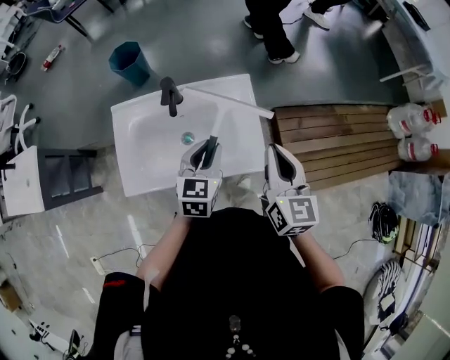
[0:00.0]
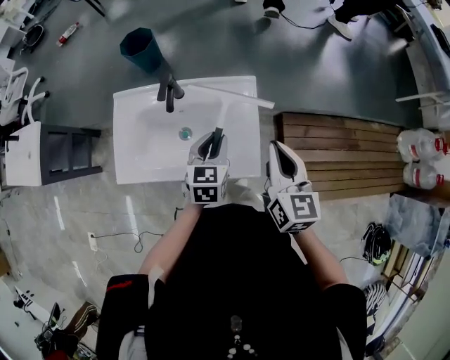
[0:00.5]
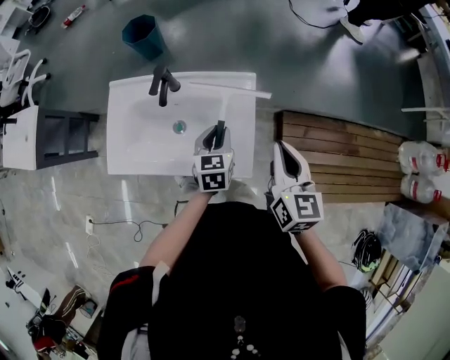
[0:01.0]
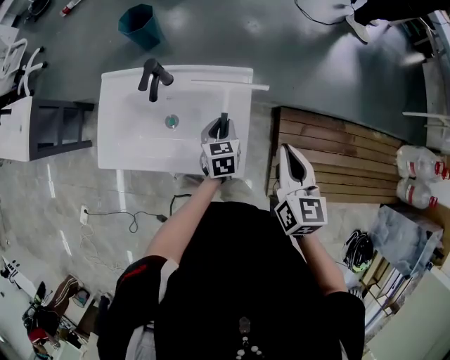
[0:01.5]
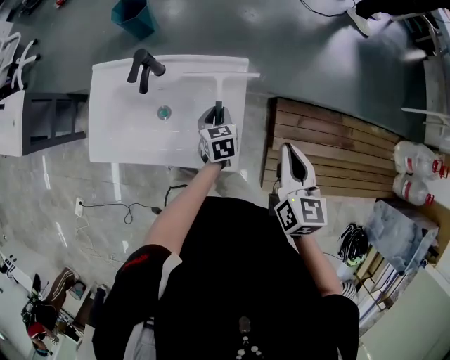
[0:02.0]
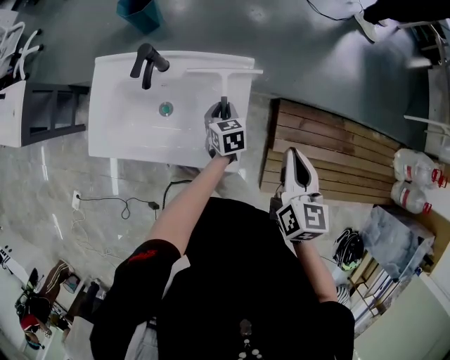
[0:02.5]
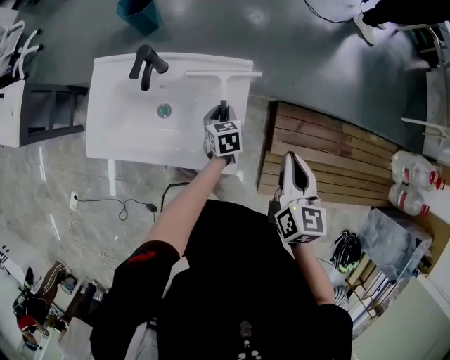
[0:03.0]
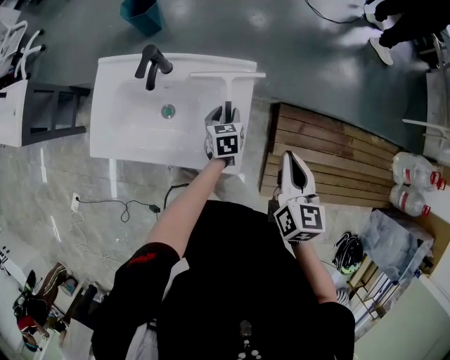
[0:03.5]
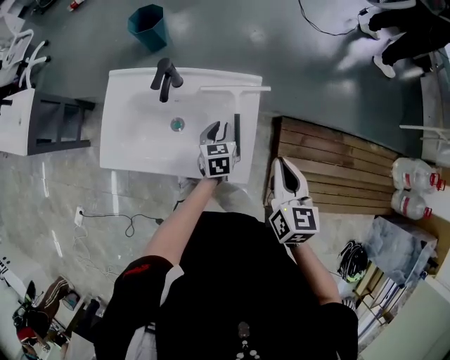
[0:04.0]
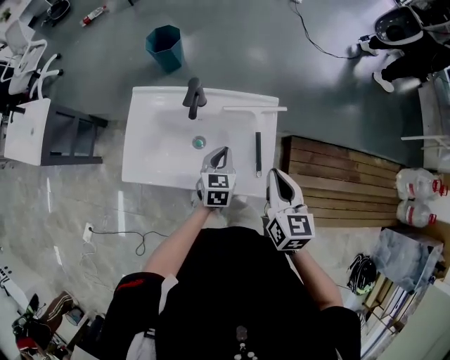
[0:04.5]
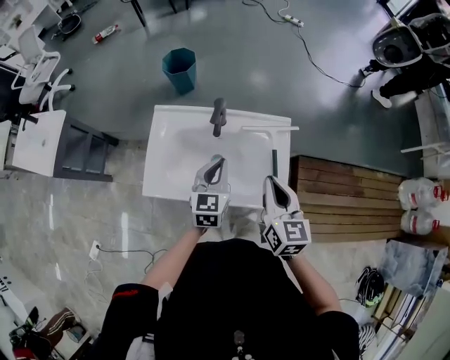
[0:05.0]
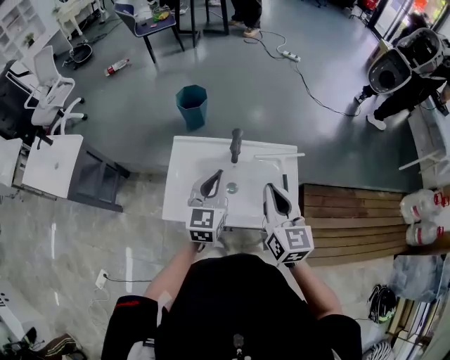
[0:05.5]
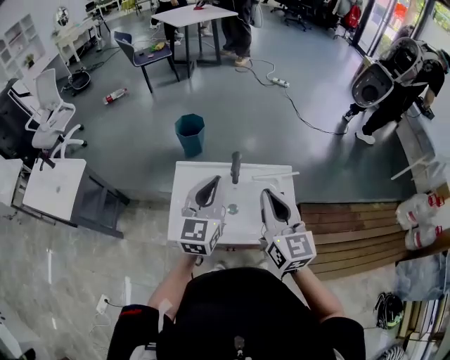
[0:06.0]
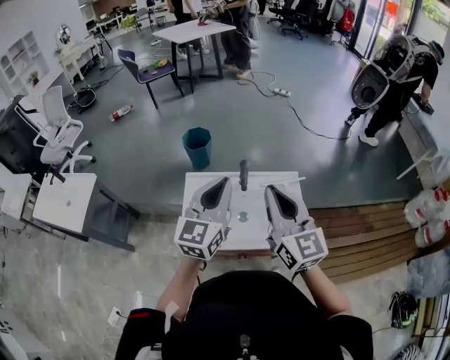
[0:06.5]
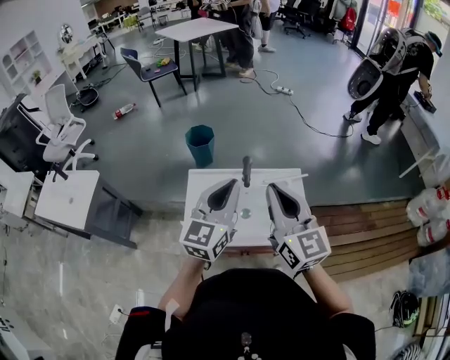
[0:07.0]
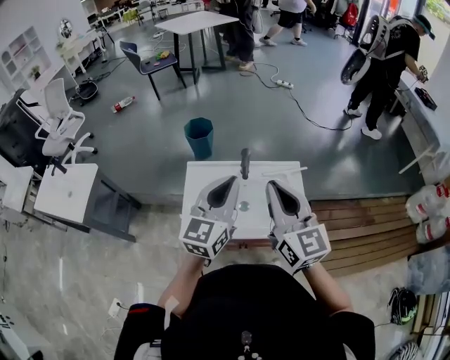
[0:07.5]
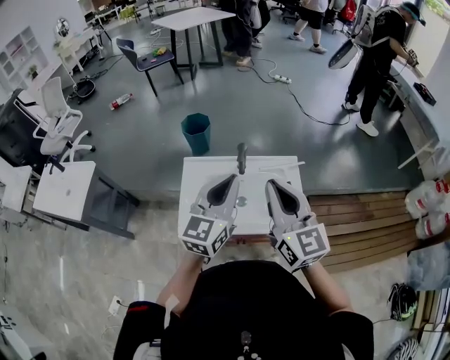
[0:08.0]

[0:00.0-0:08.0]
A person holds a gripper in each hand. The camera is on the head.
0:00.0 to 0:02.0: The left gripper goes about 25 cm downward, to the right and forward, and changes its angle by about 40 degrees. Meanwhile the right gripper travels to the right, downward and forward by some 15 cm.
0:02.0 to 0:04.0: The right gripper moves to the left, some 5 cm.
0:04.0 to 0:06.0: The right gripper heads to the left and upward, covering roughly 35 cm, and changes its angle by roughly 30 degrees. Meanwhile the left gripper travels upward and to the left by approximately 40 cm, tips its fingers upward by about 40 degrees, and closes its fingers.
0:06.0 to 0:08.0: Both grippers travel together backward, about 5 cm.

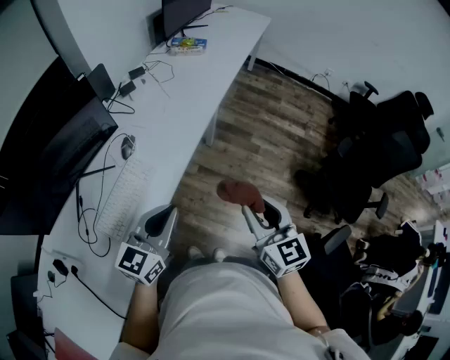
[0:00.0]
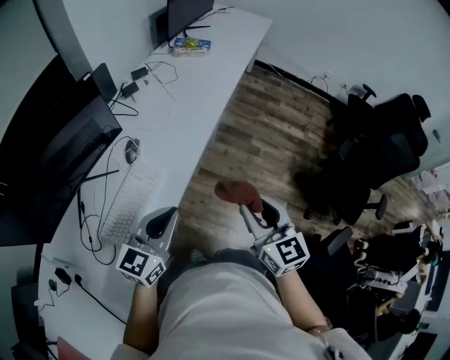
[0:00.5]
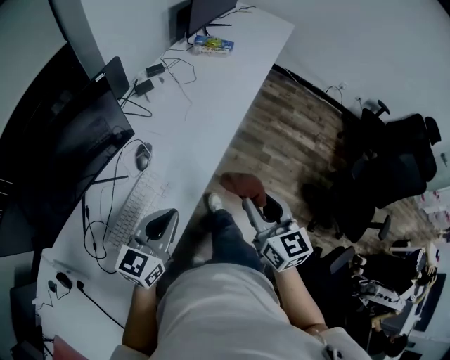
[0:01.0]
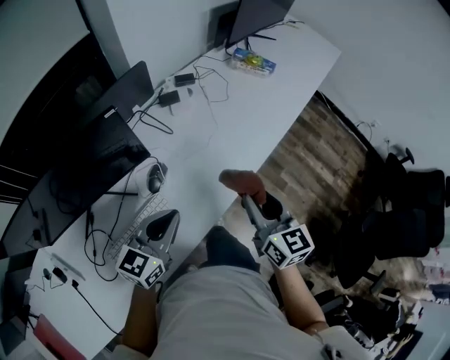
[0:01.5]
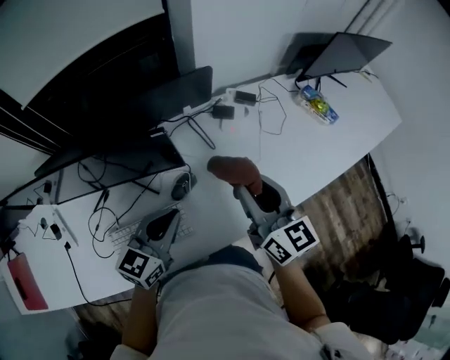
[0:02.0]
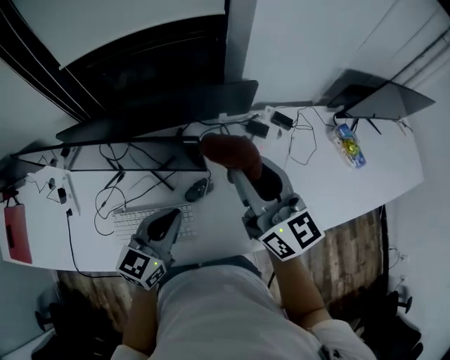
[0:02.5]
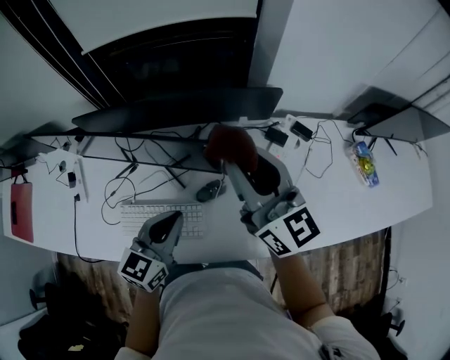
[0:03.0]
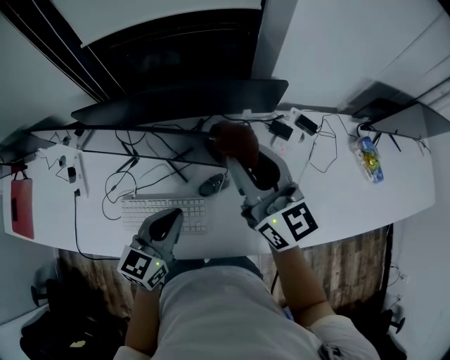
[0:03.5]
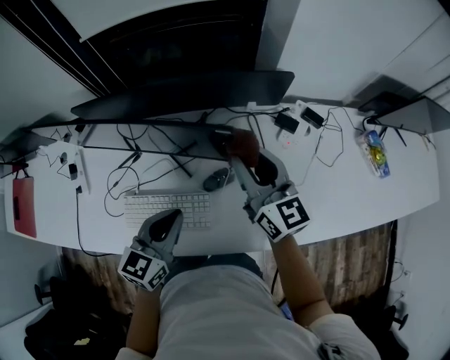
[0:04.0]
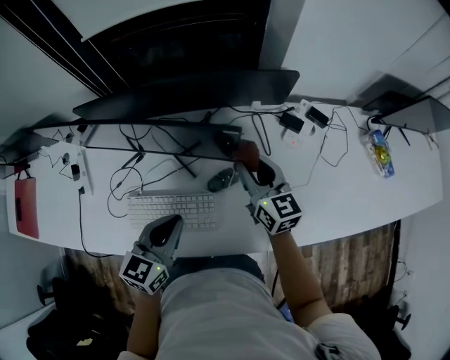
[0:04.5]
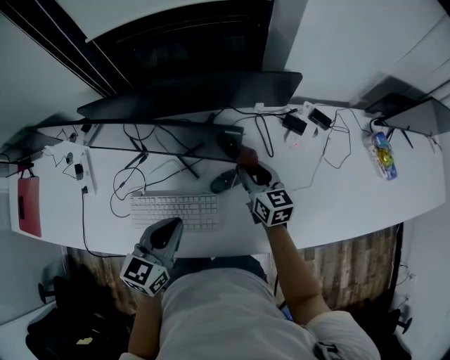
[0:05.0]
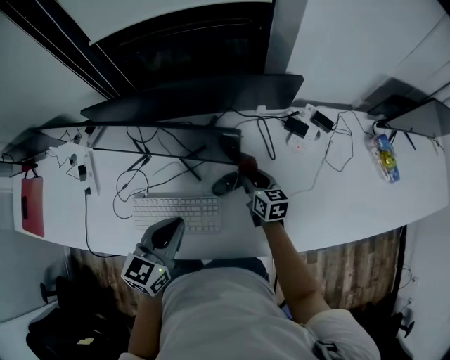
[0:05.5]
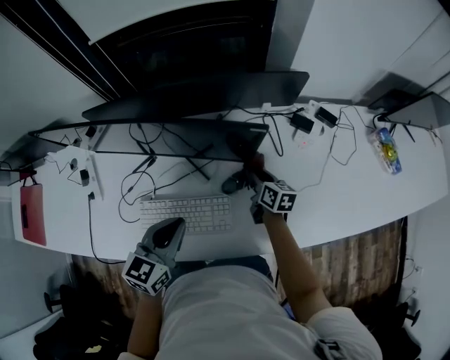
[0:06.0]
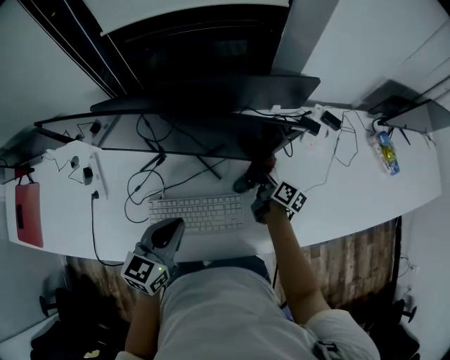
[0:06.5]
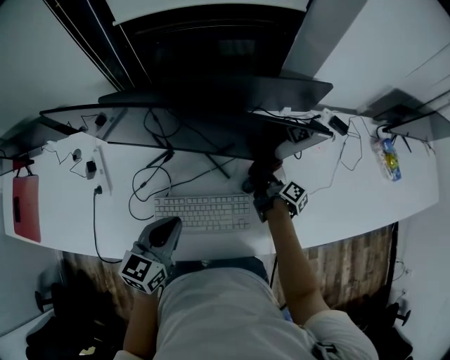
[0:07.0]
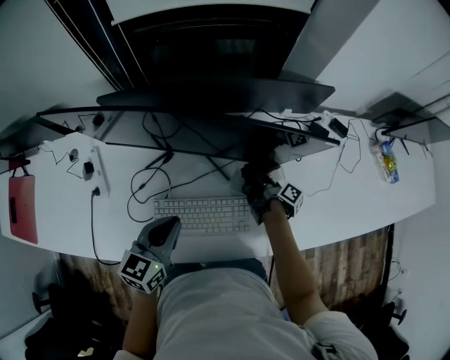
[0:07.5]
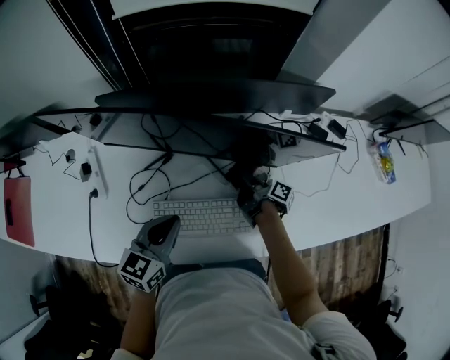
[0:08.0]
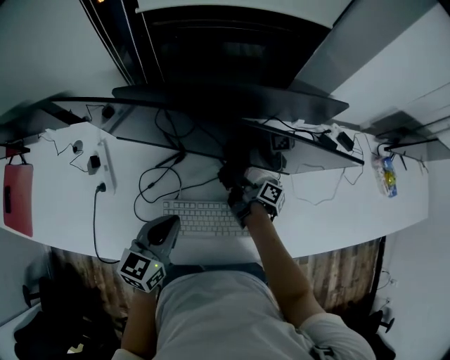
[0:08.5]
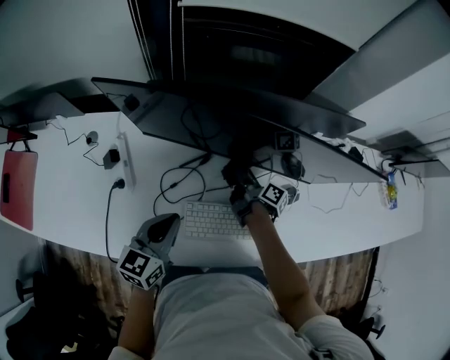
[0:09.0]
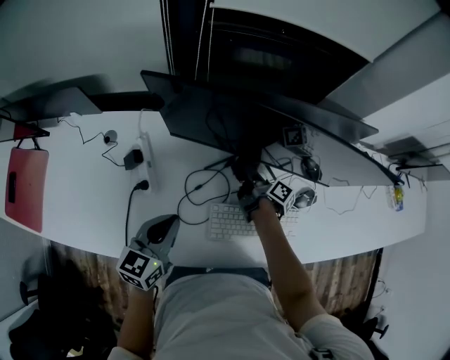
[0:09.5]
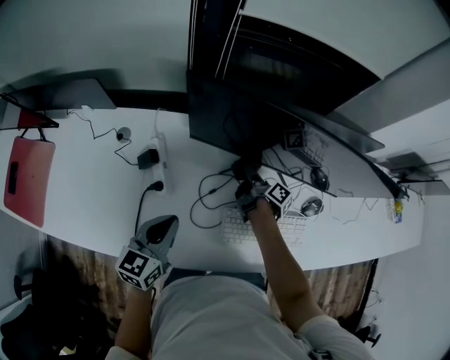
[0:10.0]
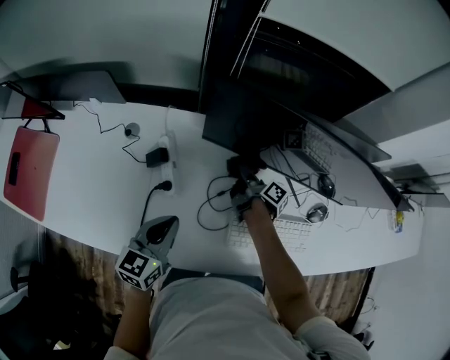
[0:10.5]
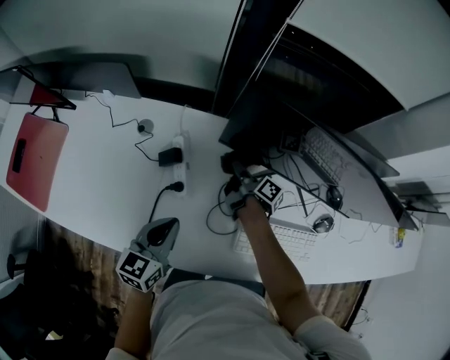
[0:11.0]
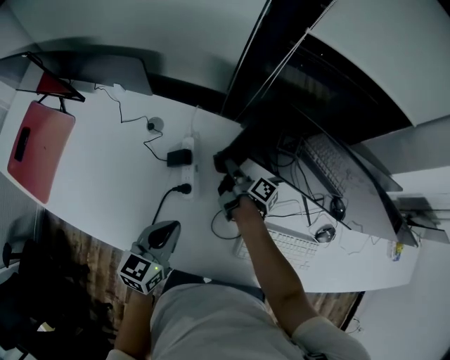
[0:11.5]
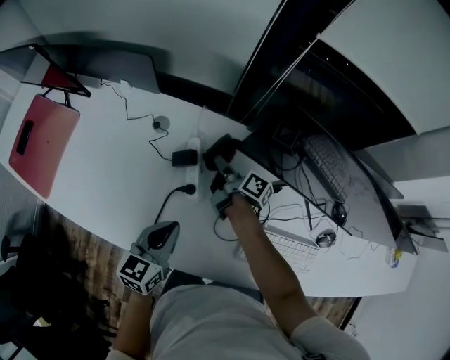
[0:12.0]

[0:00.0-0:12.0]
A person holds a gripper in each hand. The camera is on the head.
0:00.0 to 0:02.0: The left gripper changes place by some 35 cm, and swivels some 40 degrees; the right gripper shifts by approximately 50 cm, and rotates approximately 40 degrees.
0:02.0 to 0:04.0: The left gripper shifts approximately 5 cm to the left, and turns by approximately 20 degrees. Meanwhile the right gripper shifts about 15 cm forward and to the left, and turns by roughly 20 degrees.
0:04.0 to 0:06.0: The right gripper heads downward, covering some 25 cm, and turns by some 40 degrees; the left gripper travels to the left by roughly 5 cm.
0:06.0 to 0:08.0: Both grippers move to the left, approximately 10 cm. The right gripper twists approximately 50 degrees clockwise, seen from behind.
0:08.0 to 0:10.0: The grippers both shift to the left by some 30 cm.
0:10.0 to 0:12.0: The right gripper travels to the left by approximately 25 cm, and changes its angle by roughly 30 degrees; the left gripper travels to the left by some 10 cm.

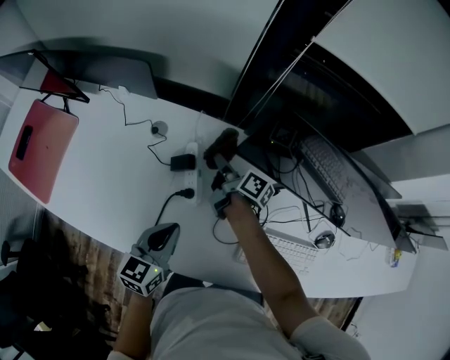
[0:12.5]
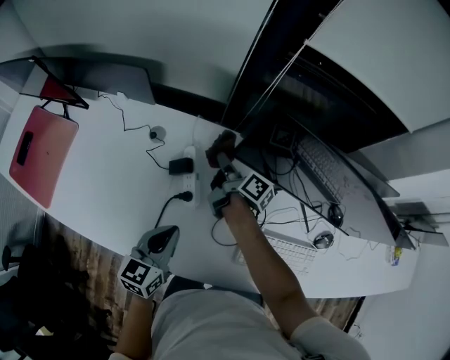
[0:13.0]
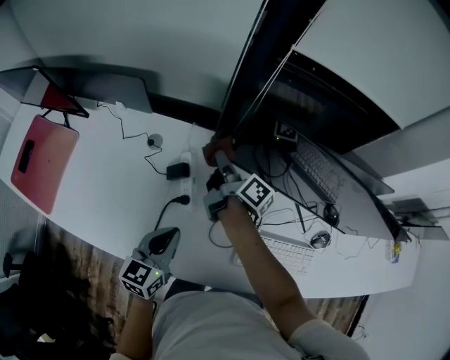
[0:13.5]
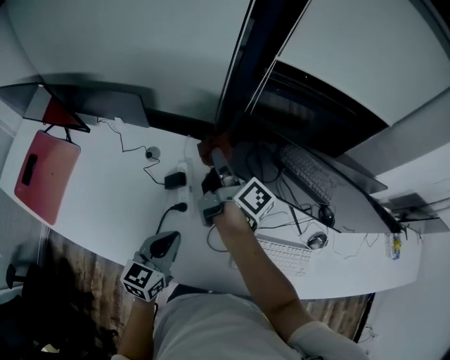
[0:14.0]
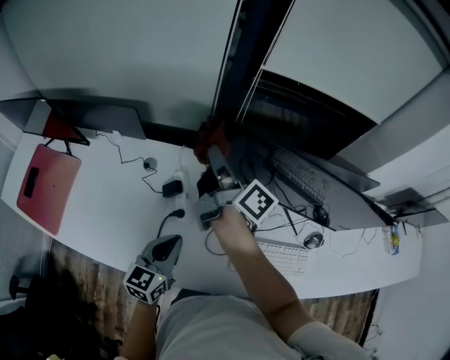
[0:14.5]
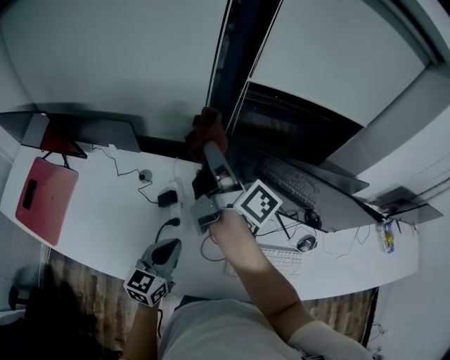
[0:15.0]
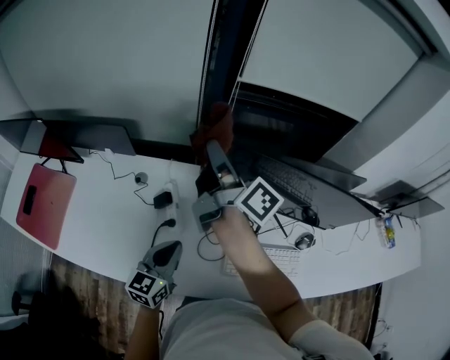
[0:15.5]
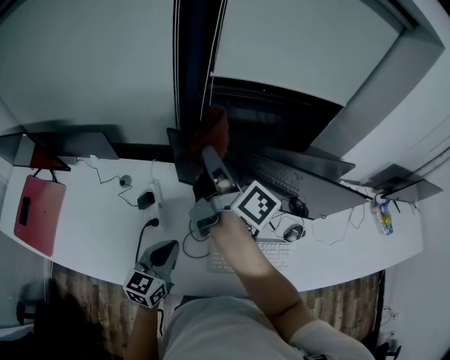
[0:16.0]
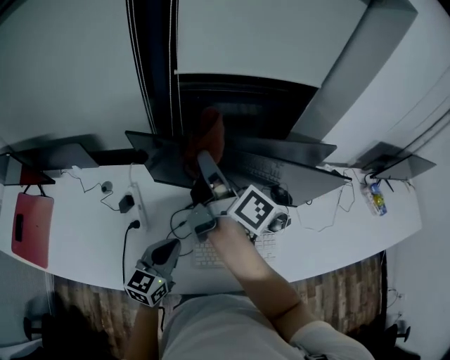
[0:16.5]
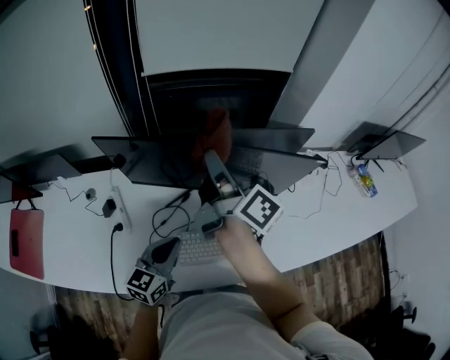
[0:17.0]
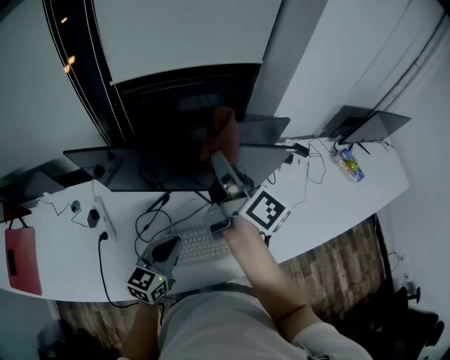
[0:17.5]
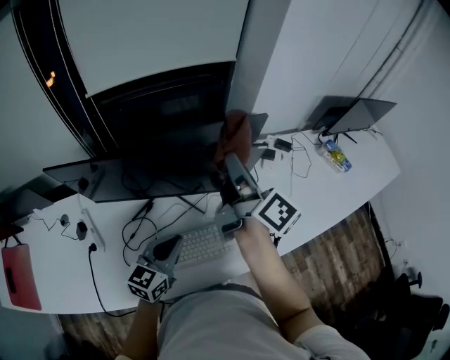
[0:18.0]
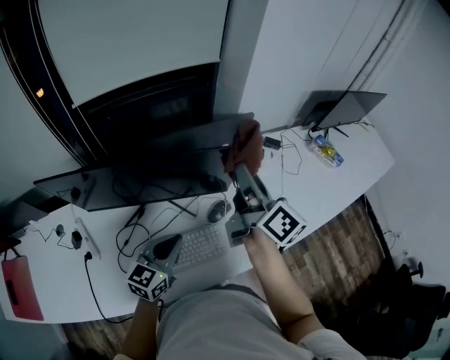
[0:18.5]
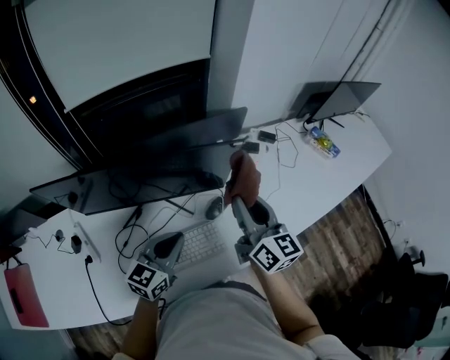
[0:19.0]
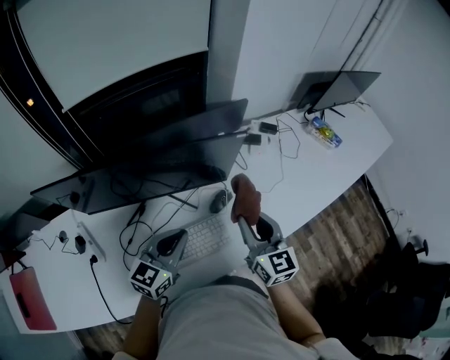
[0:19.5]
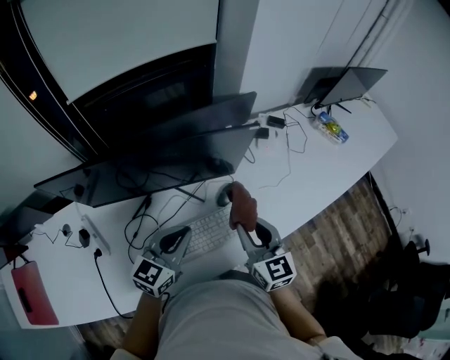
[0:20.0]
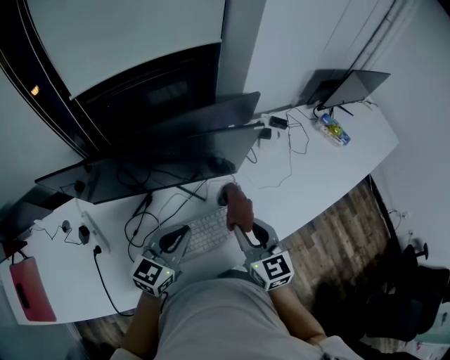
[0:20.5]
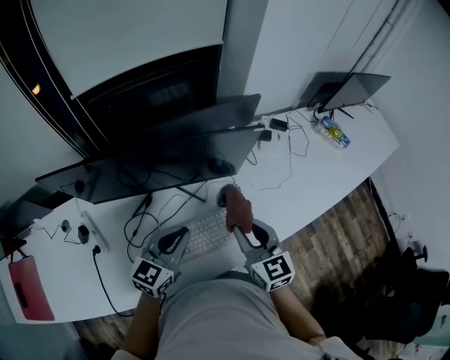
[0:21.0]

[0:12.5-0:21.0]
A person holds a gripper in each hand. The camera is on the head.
0:12.5 to 0:14.5: The left gripper moves upward, about 5 cm. Meanwhile the right gripper goes roughly 30 cm upward, and turns by some 30 degrees.
0:14.5 to 0:16.5: Both grippers move to the right, some 20 cm.
0:16.5 to 0:19.0: The right gripper moves some 40 cm, and rolls counterclockwise, seen from behind, by roughly 50 degrees, while the left gripper moves about 25 cm, and rotates about 30 degrees.
0:19.0 to 0:21.0: The right gripper is displaced downward and backward by roughly 10 cm, and rotates about 30 degrees.
